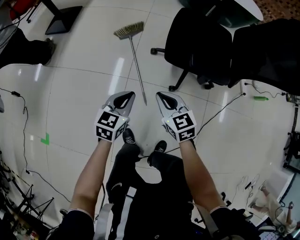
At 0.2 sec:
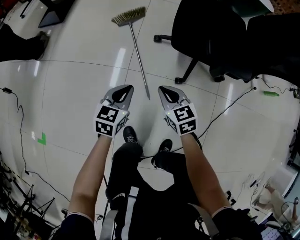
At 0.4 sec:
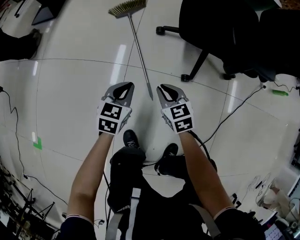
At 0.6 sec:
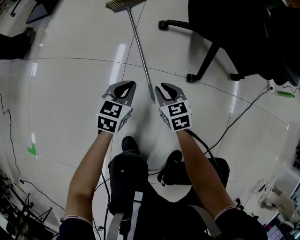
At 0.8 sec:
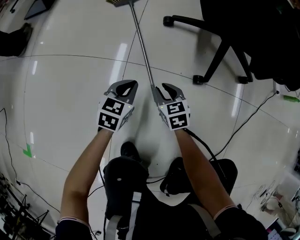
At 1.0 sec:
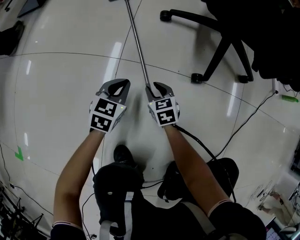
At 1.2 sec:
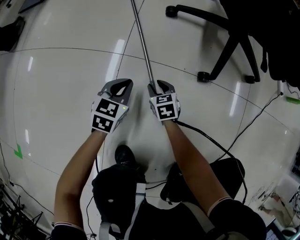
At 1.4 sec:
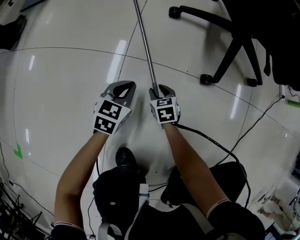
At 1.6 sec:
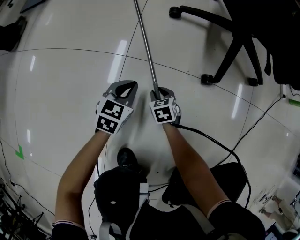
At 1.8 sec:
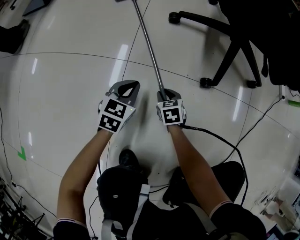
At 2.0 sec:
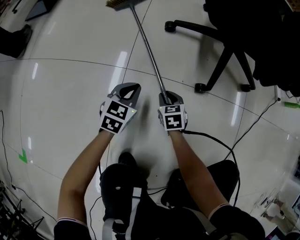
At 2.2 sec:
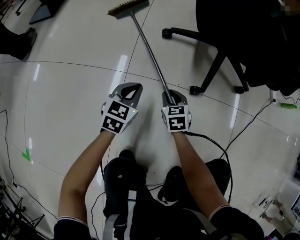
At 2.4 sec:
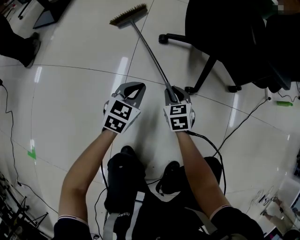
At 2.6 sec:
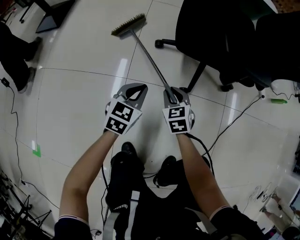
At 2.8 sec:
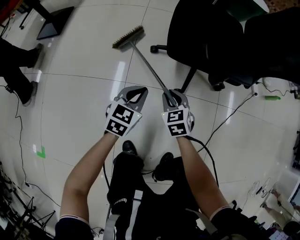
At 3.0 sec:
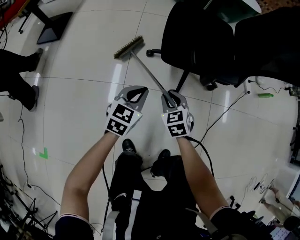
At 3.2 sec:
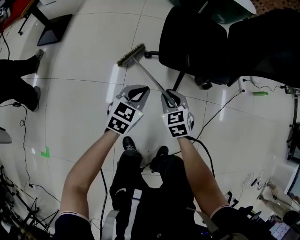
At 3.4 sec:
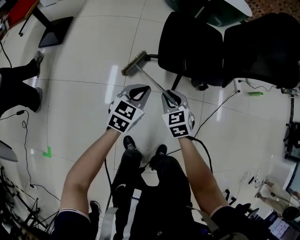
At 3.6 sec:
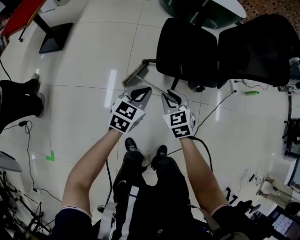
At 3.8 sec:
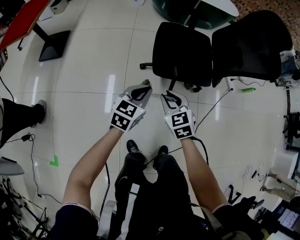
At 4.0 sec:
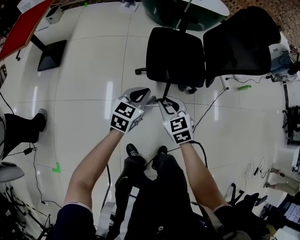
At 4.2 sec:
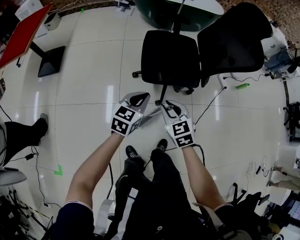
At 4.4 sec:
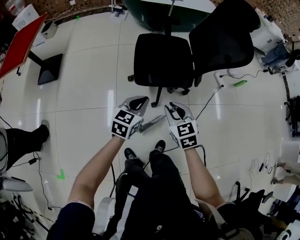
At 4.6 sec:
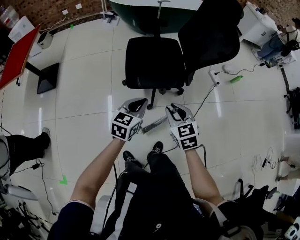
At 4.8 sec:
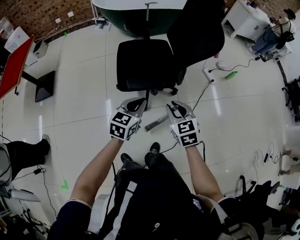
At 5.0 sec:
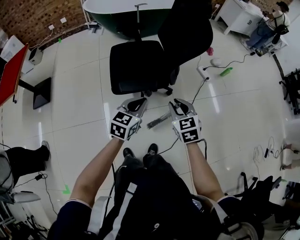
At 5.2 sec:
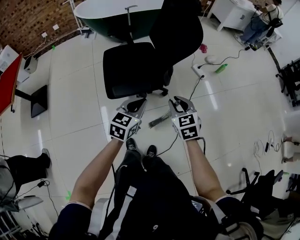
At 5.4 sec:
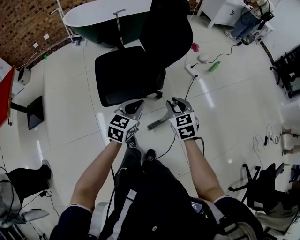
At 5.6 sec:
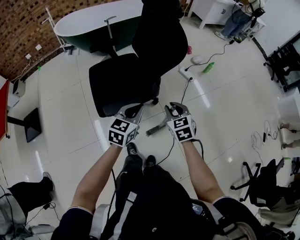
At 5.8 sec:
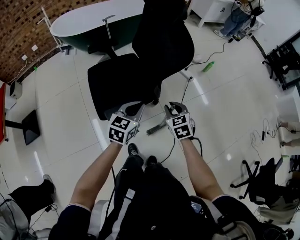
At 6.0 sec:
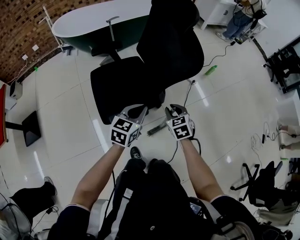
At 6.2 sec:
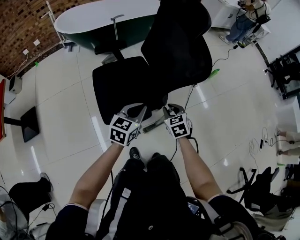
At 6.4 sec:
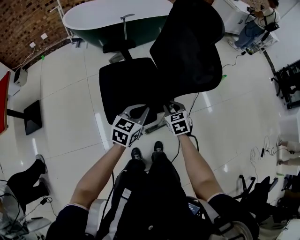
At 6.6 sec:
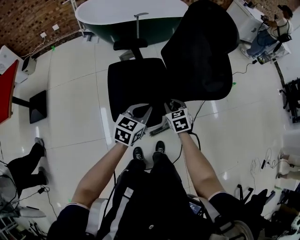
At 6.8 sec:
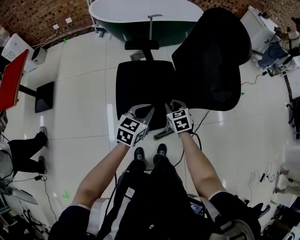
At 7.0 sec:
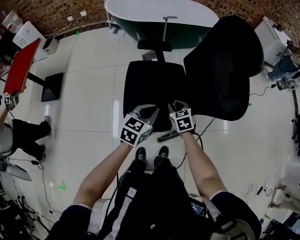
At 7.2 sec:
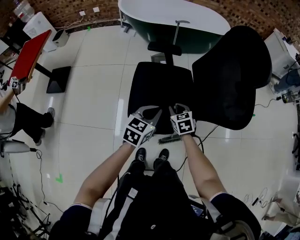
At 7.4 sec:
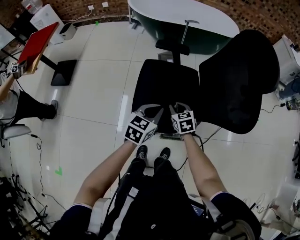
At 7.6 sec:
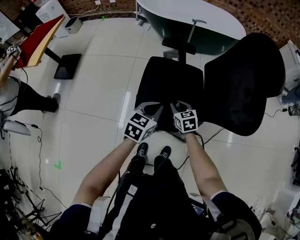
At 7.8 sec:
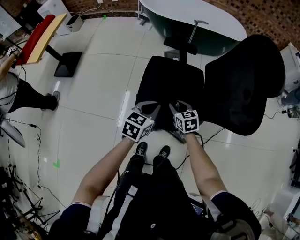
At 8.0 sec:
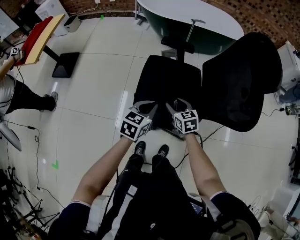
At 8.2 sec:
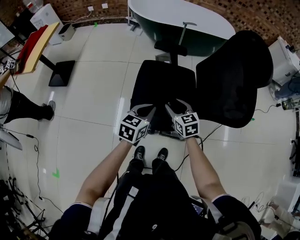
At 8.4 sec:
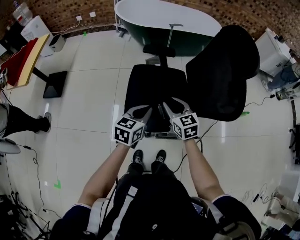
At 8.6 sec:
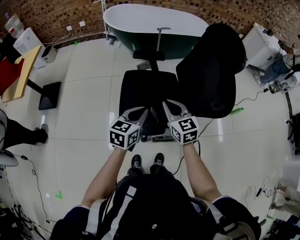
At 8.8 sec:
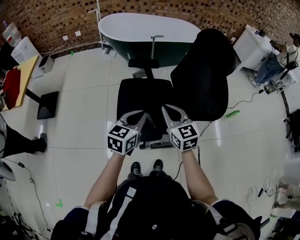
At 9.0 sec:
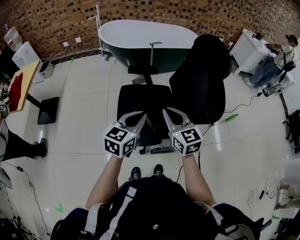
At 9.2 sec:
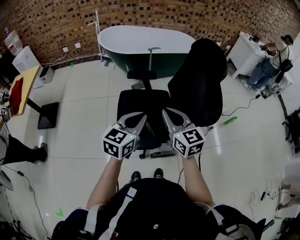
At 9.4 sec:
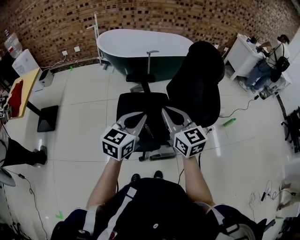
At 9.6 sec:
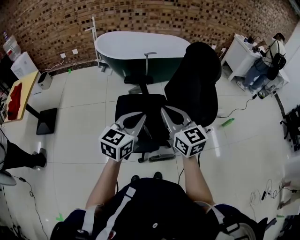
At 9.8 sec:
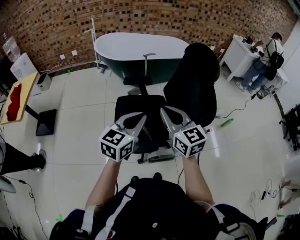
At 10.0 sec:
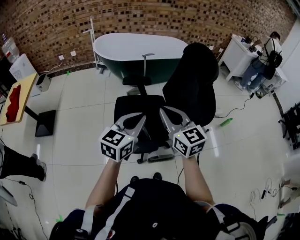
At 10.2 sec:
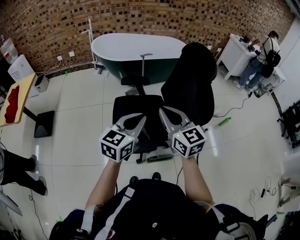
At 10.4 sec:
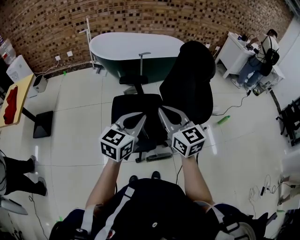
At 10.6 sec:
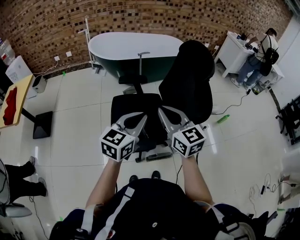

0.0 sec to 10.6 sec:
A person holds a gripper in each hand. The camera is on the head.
0.0 sec to 1.6 sec: The grippers both shift downward by approximately 50 cm. The right gripper swivels about 30 degrees, and opens.
1.6 sec to 3.0 sec: Both grippers move upward, roughly 40 cm.
3.0 sec to 4.6 sec: Both grippers travel together upward and to the right, some 30 cm.
4.6 sec to 6.0 sec: Both grippers move forward and to the right, roughly 20 cm. The right gripper swivels some 20 degrees.
6.0 sec to 7.6 sec: The left gripper changes place by about 15 cm, and turns by about 30 degrees; the right gripper shifts by some 25 cm, and swivels some 30 degrees.
7.6 sec to 9.0 sec: The right gripper travels upward by about 25 cm, swivels roughly 30 degrees, and opens, then closes once more. Meanwhile the left gripper travels upward by some 15 cm.
9.0 sec to 10.6 sec: The grippers both shift upward by some 5 cm.

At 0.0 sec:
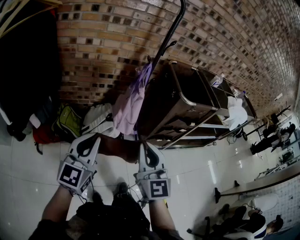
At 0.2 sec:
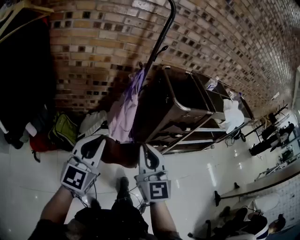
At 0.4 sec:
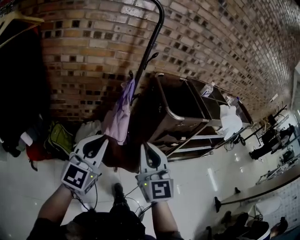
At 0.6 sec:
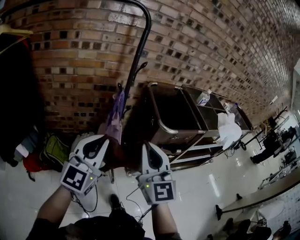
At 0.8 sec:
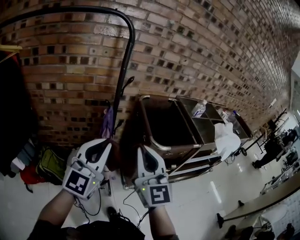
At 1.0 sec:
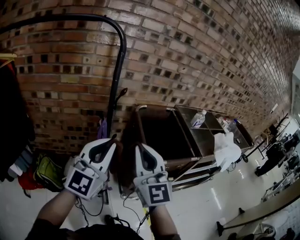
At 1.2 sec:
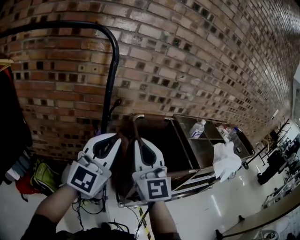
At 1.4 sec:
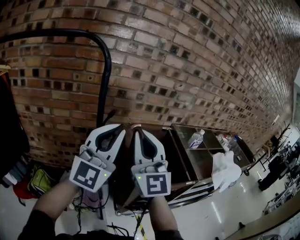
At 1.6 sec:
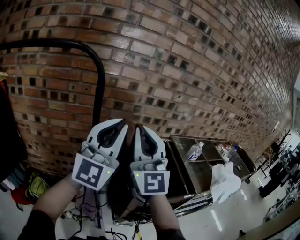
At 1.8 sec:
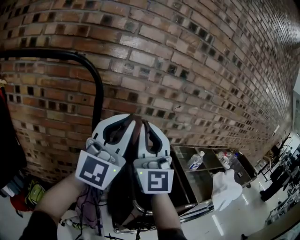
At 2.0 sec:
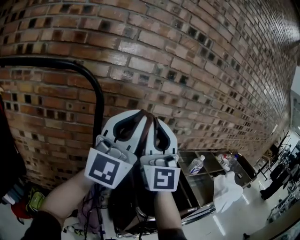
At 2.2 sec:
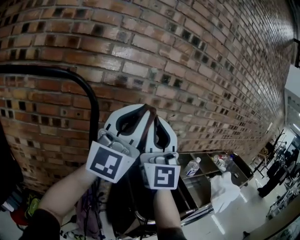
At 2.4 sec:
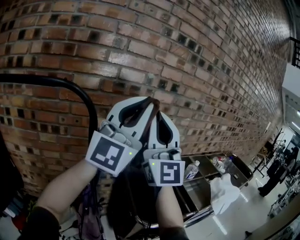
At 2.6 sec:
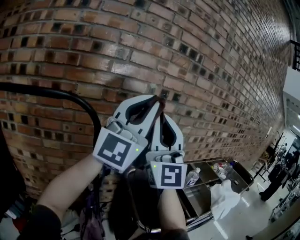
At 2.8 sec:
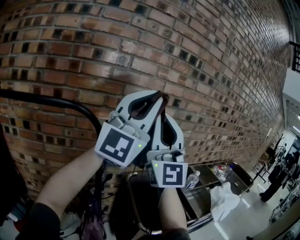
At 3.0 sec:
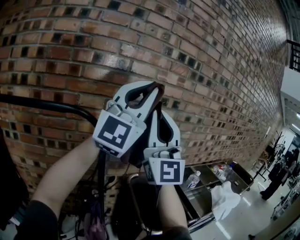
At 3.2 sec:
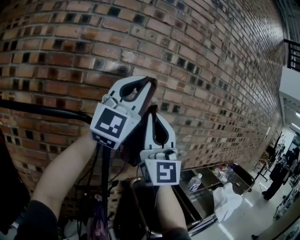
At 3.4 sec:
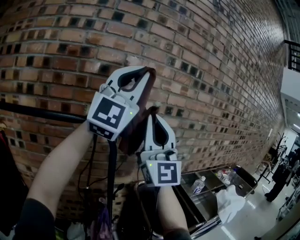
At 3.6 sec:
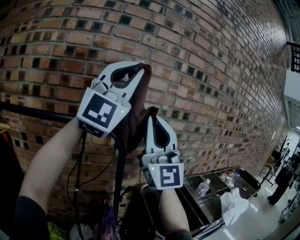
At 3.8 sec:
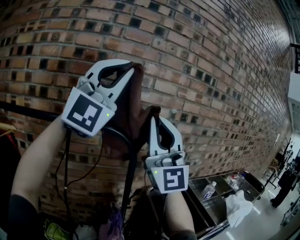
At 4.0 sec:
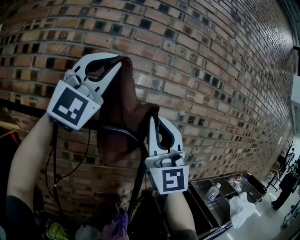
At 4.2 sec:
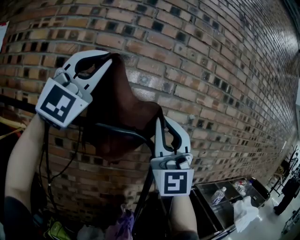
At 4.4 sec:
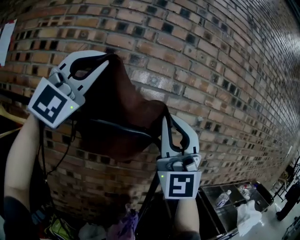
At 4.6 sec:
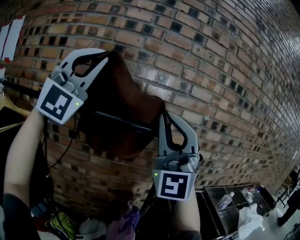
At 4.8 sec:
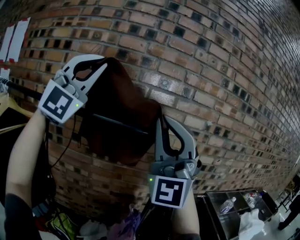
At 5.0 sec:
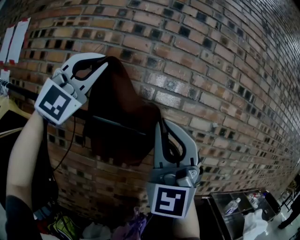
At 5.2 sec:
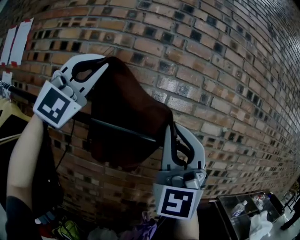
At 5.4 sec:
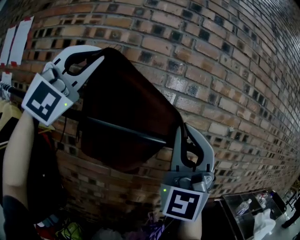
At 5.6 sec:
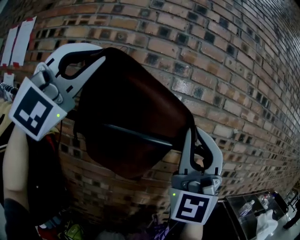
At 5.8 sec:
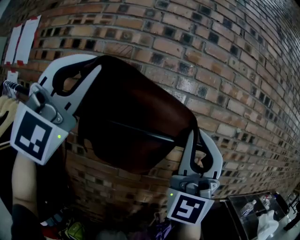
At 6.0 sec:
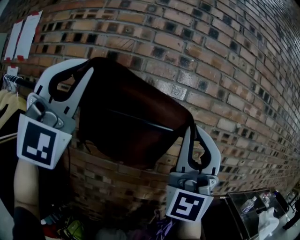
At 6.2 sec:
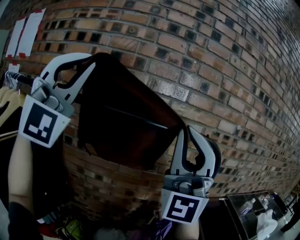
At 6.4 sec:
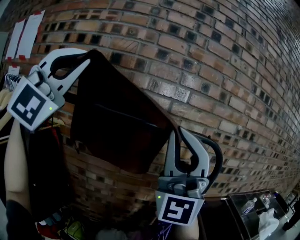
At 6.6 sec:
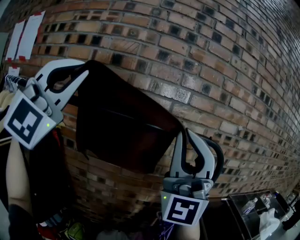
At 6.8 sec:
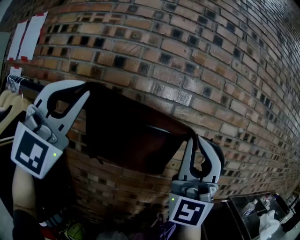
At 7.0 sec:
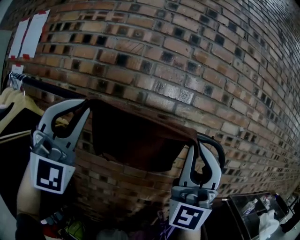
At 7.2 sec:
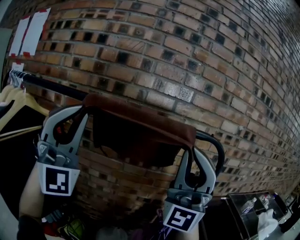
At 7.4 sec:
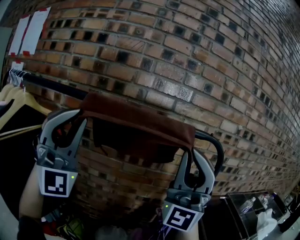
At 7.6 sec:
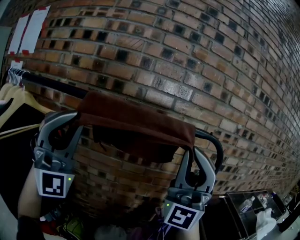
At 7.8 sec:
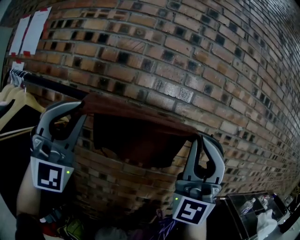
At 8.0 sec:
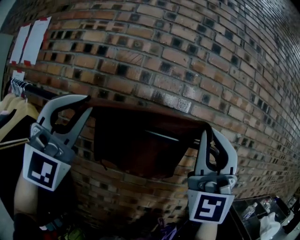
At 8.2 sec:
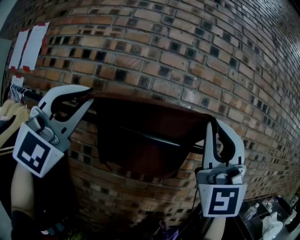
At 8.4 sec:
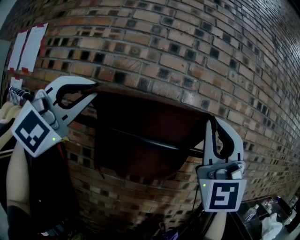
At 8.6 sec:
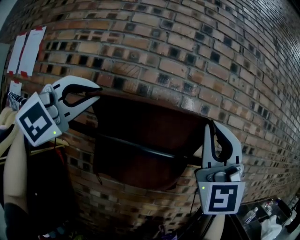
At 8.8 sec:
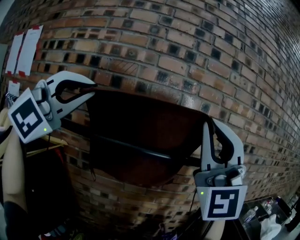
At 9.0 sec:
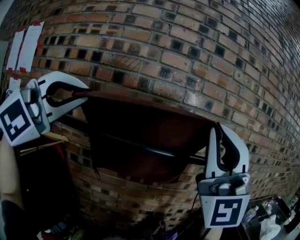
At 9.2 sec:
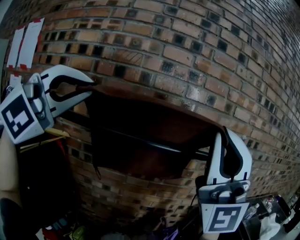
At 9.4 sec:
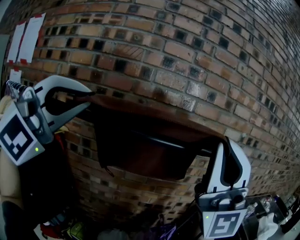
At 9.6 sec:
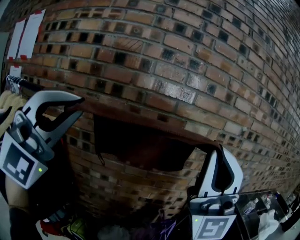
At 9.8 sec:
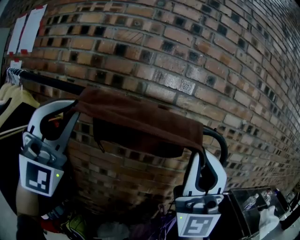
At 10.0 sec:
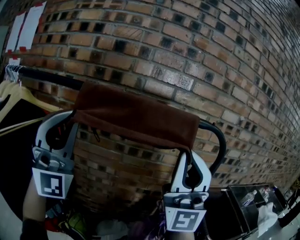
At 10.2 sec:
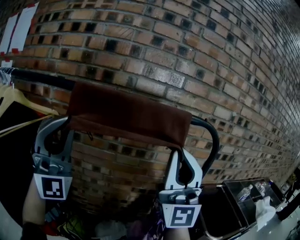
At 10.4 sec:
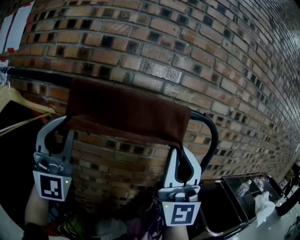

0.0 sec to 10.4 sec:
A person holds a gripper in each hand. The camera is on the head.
0.0 sec to 1.4 sec: Both grippers are carried forward and to the right, approximately 50 cm. Both grippers travel together upward, roughly 25 cm. The right gripper swivels roughly 20 degrees. Meanwhile the left gripper rotates about 30 degrees.
1.4 sec to 3.0 sec: The two grippers go about 30 cm upward. The left gripper swivels roughly 20 degrees. Meanwhile the right gripper swivels approximately 30 degrees.
3.0 sec to 4.4 sec: The left gripper goes approximately 35 cm to the left, and rotates some 40 degrees. Meanwhile the right gripper heads to the left, covering approximately 20 cm, and swivels approximately 20 degrees.
4.4 sec to 6.0 sec: The right gripper moves to the left, about 10 cm, while the left gripper heads to the left and downward, covering about 20 cm, and turns by roughly 20 degrees.
6.0 sec to 7.4 sec: The right gripper moves downward, roughly 5 cm; the left gripper heads downward, covering approximately 10 cm.
7.4 sec to 9.0 sec: Both grippers move upward, roughly 15 cm. The left gripper points its fingers roughly 30 degrees further downward.
9.0 sec to 10.4 sec: Both grippers travel together downward, roughly 20 cm. The right gripper rotates about 20 degrees; the left gripper tips its fingers upward by approximately 40 degrees.

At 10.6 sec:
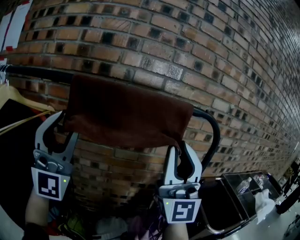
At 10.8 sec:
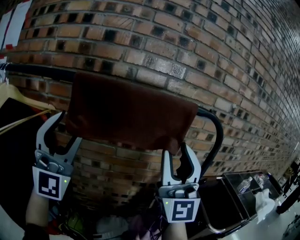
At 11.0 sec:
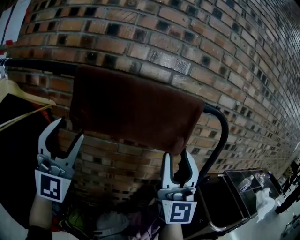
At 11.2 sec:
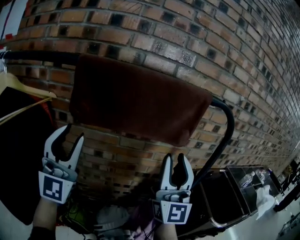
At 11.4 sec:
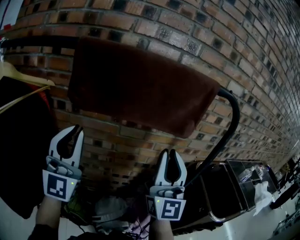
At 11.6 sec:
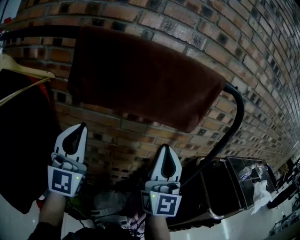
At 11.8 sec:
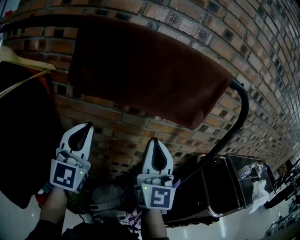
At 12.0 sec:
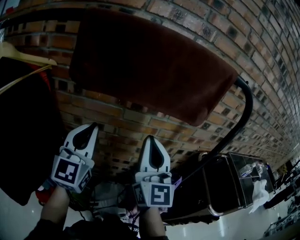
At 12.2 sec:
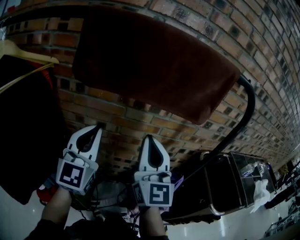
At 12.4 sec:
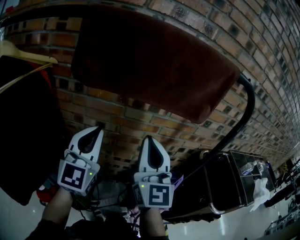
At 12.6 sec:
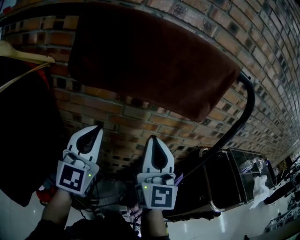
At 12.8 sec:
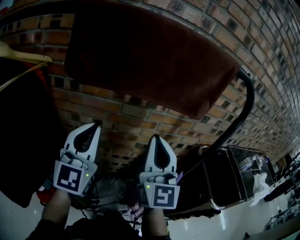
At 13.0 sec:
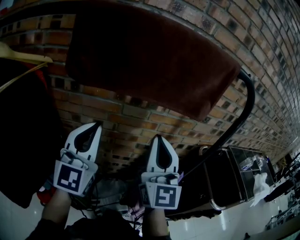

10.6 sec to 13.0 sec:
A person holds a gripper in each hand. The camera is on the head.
10.6 sec to 11.8 sec: Both grippers travel together downward and forward, approximately 20 cm. The left gripper swivels roughly 40 degrees, and closes its fingers. Meanwhile the right gripper changes its angle by about 30 degrees, and opens, then closes once more.
11.8 sec to 13.0 sec: The grippers make only small movements.
